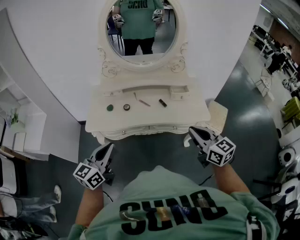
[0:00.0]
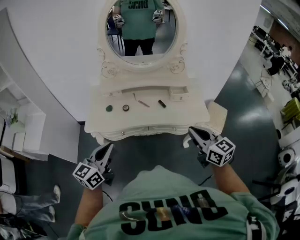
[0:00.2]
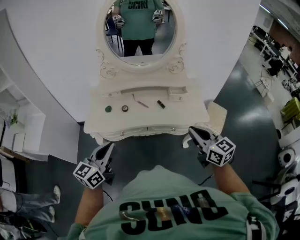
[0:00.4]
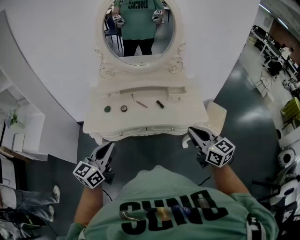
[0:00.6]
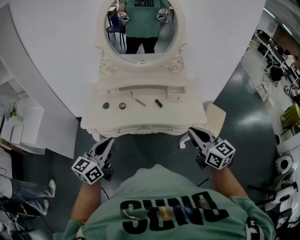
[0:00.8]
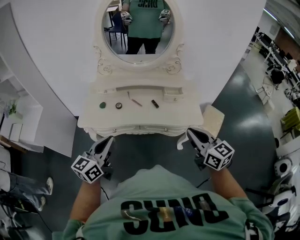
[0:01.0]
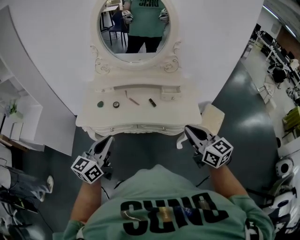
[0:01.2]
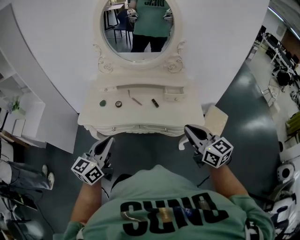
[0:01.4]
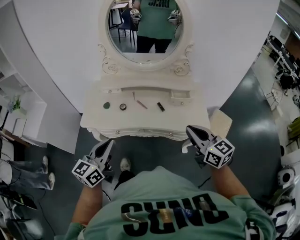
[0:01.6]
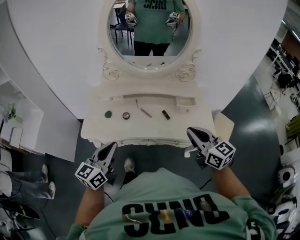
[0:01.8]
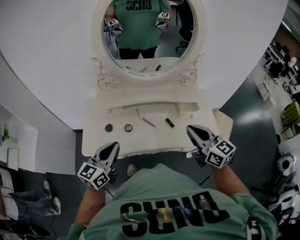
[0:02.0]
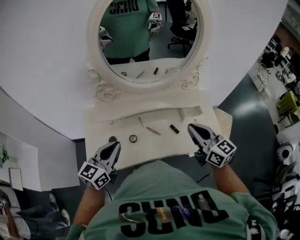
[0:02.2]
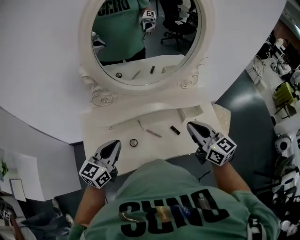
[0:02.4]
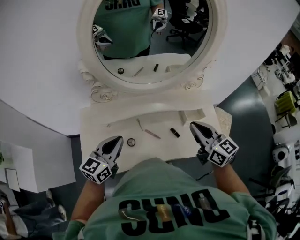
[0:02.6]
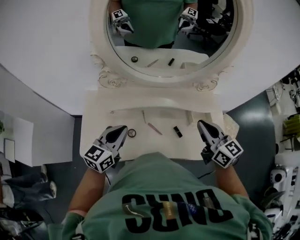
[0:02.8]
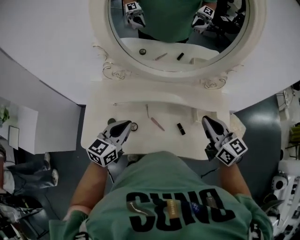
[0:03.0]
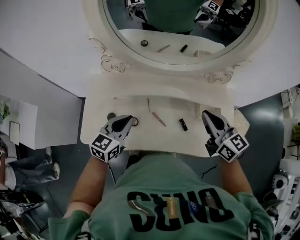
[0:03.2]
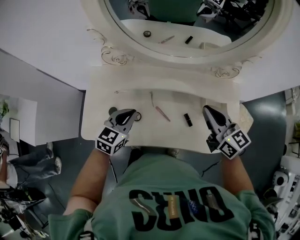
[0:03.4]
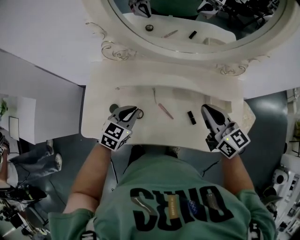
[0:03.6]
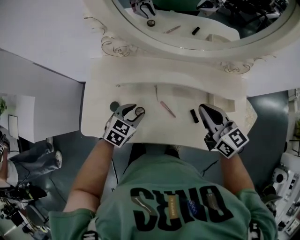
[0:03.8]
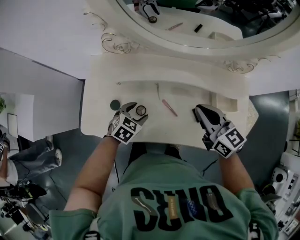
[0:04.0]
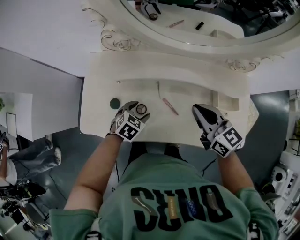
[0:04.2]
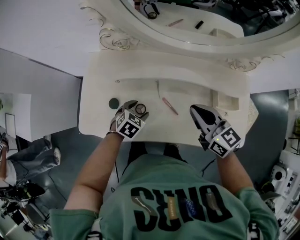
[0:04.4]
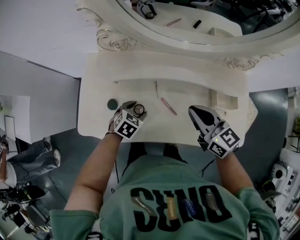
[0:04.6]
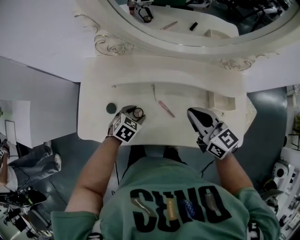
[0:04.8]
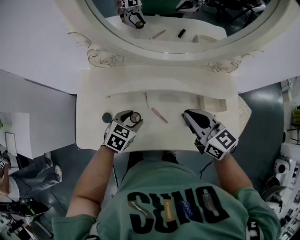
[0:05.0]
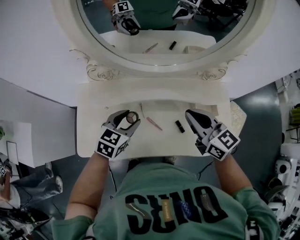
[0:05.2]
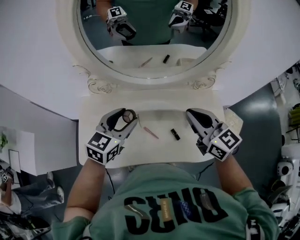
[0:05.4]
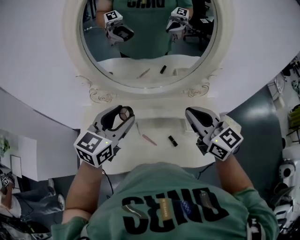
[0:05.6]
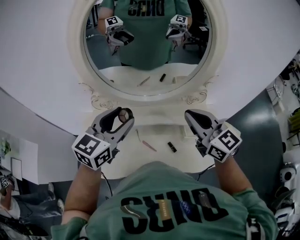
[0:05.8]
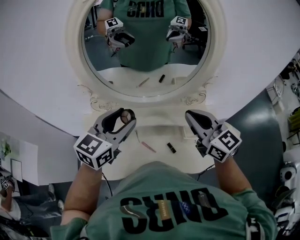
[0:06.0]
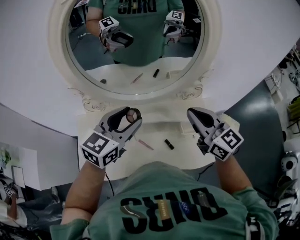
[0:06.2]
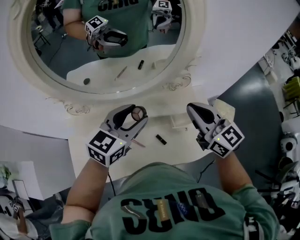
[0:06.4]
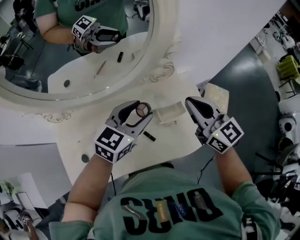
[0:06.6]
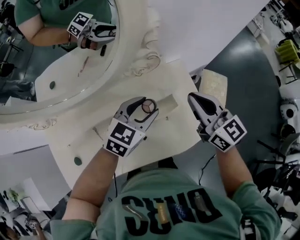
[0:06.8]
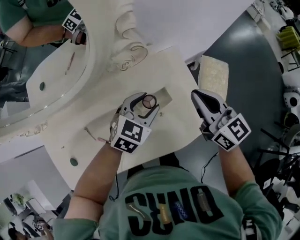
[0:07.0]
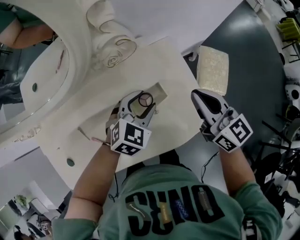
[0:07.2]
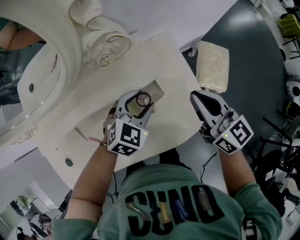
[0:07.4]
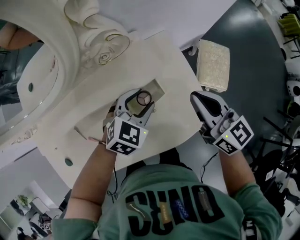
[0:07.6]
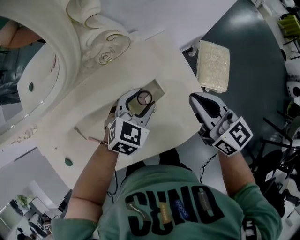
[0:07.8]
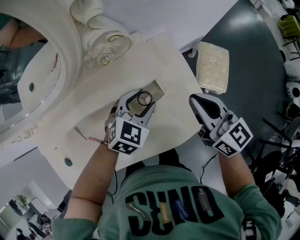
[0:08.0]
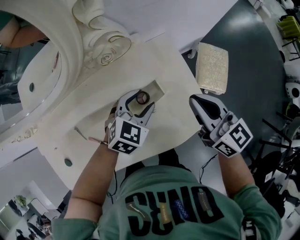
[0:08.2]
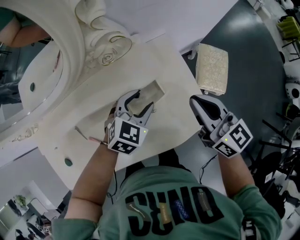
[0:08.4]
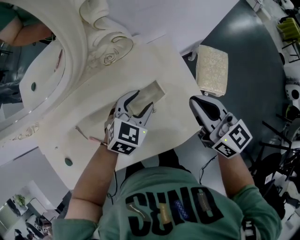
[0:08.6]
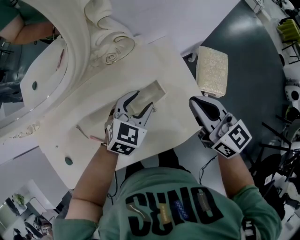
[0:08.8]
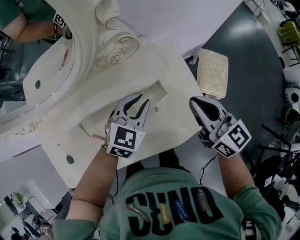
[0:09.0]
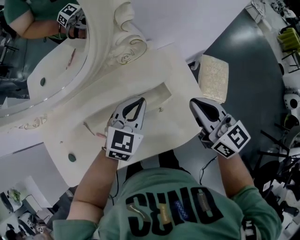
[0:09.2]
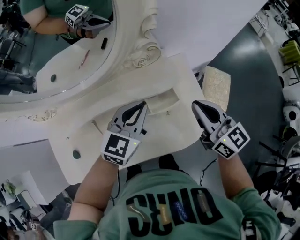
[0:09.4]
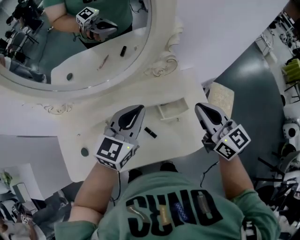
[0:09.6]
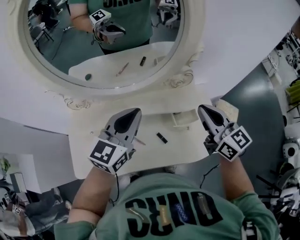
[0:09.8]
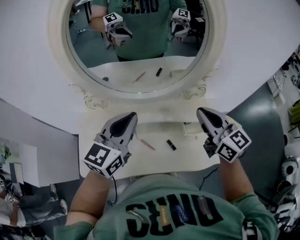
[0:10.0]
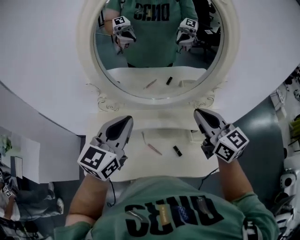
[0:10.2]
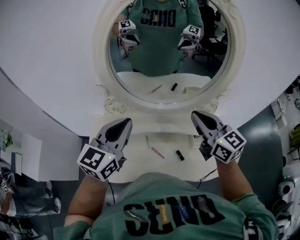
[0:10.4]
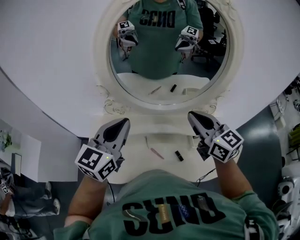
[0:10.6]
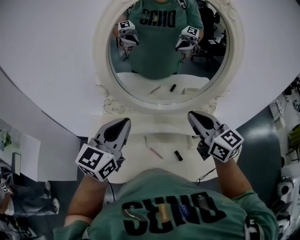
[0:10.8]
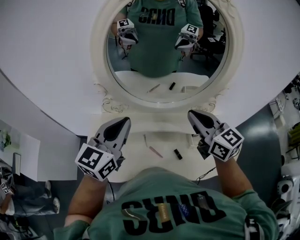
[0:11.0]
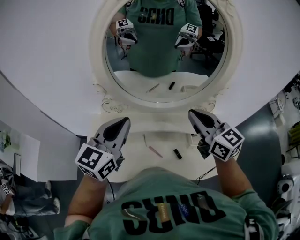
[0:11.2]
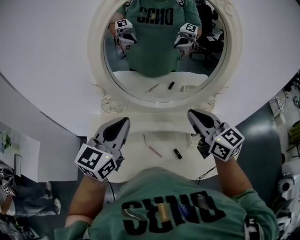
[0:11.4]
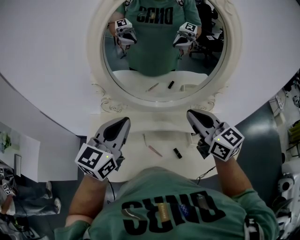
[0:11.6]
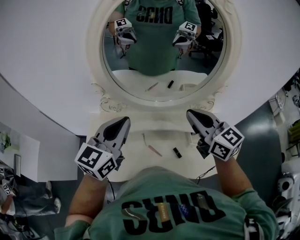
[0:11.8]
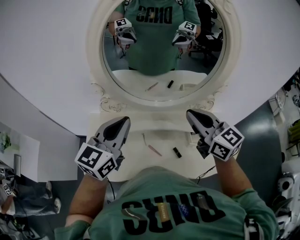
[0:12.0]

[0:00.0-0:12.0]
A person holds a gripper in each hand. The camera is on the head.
0:00.0 to 0:01.6: The right gripper heads forward and to the right, covering some 10 cm. Meanwhile the left gripper heads to the right, covering approximately 10 cm.
0:01.6 to 0:03.0: Both grippers move forward, some 30 cm.
0:03.0 to 0:04.4: The right gripper moves downward and to the left, some 15 cm. The left gripper moves downward, roughly 25 cm, tilts its fingers approximately 40 degrees downward, and opens its fingers.
0:04.4 to 0:06.0: The right gripper is displaced upward and to the right by about 25 cm, and rotates about 20 degrees. The left gripper travels upward by roughly 40 cm, and tilts its fingers about 50 degrees upward.
0:06.0 to 0:07.6: The grippers both shift to the right and downward by roughly 40 cm. The left gripper angles its fingers downward, by about 30 degrees. Meanwhile the right gripper turns by roughly 30 degrees.
0:07.6 to 0:09.0: The left gripper shifts by approximately 5 cm, and closes its fingers.
0:09.0 to 0:10.4: Both grippers move to the left and upward, some 50 cm. The right gripper rotates about 30 degrees. The left gripper swivels some 40 degrees.
0:10.4 to 0:12.0: Both grippers stay put.

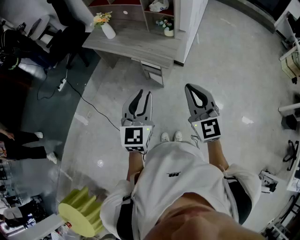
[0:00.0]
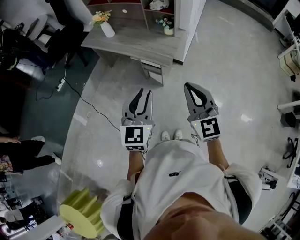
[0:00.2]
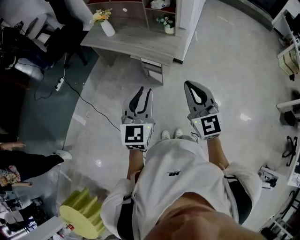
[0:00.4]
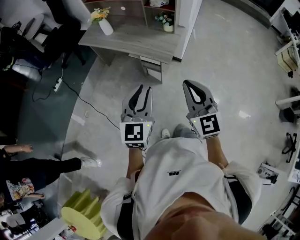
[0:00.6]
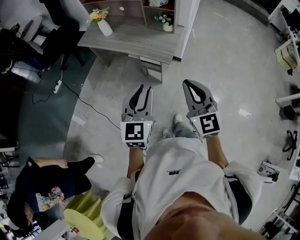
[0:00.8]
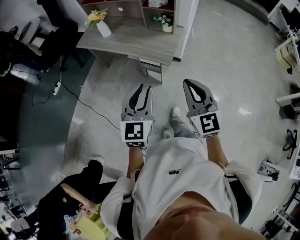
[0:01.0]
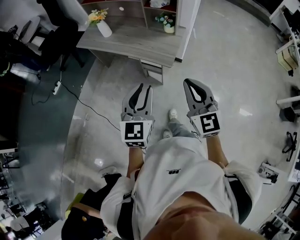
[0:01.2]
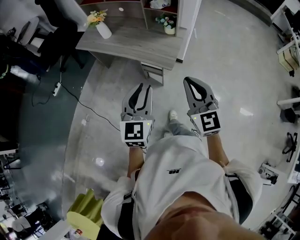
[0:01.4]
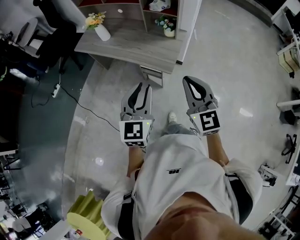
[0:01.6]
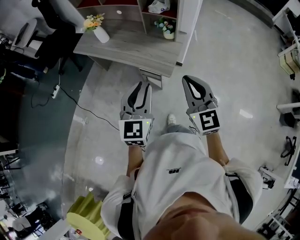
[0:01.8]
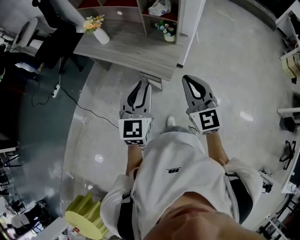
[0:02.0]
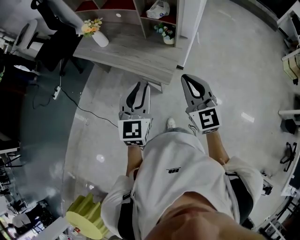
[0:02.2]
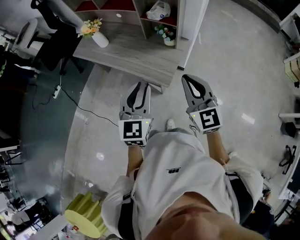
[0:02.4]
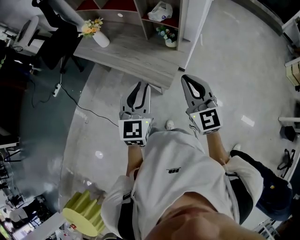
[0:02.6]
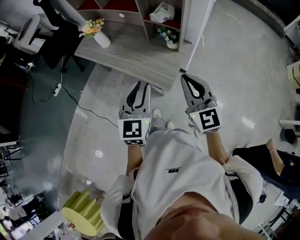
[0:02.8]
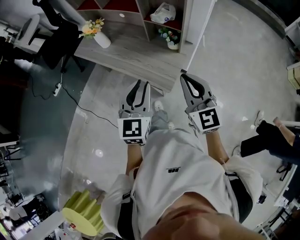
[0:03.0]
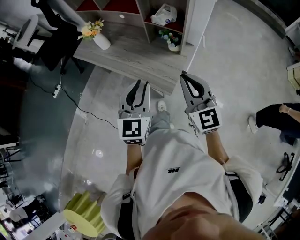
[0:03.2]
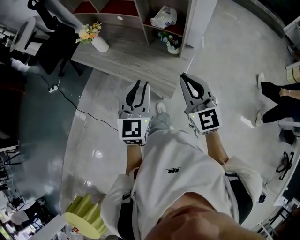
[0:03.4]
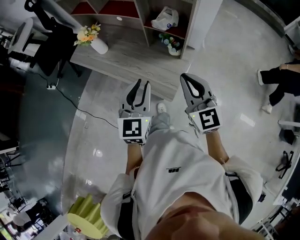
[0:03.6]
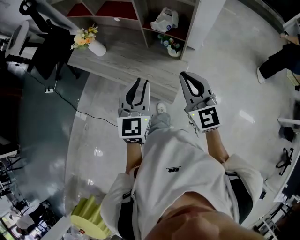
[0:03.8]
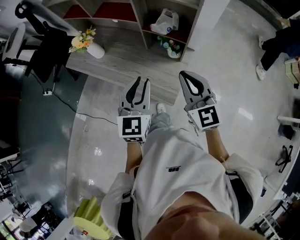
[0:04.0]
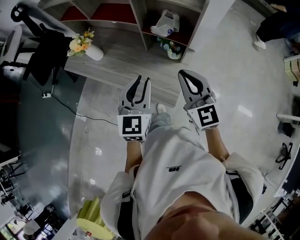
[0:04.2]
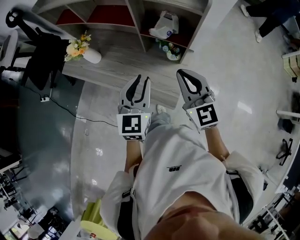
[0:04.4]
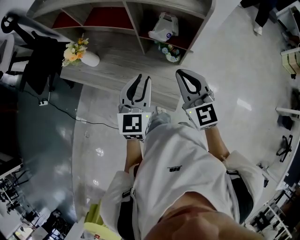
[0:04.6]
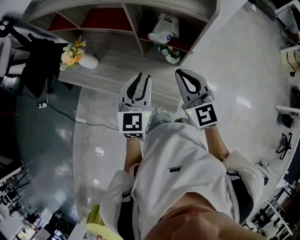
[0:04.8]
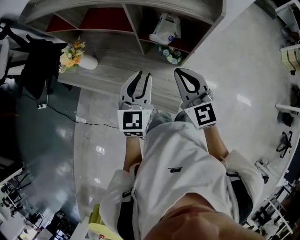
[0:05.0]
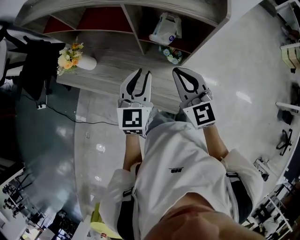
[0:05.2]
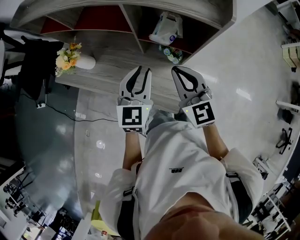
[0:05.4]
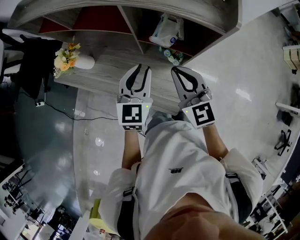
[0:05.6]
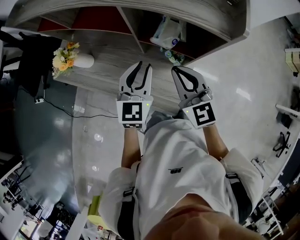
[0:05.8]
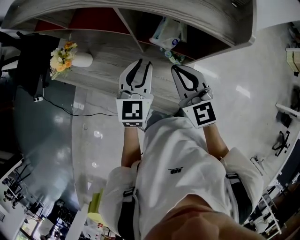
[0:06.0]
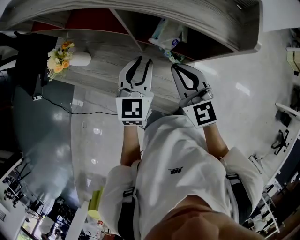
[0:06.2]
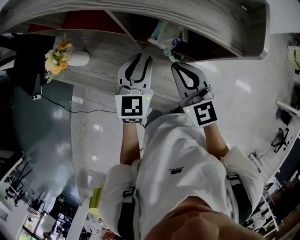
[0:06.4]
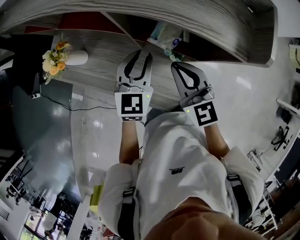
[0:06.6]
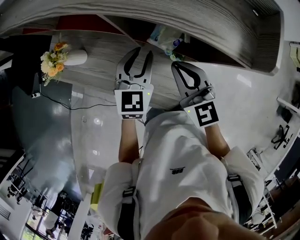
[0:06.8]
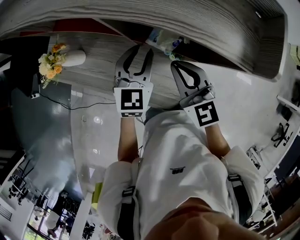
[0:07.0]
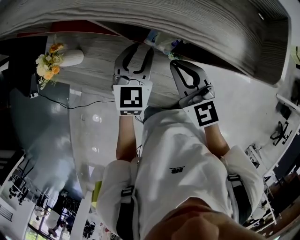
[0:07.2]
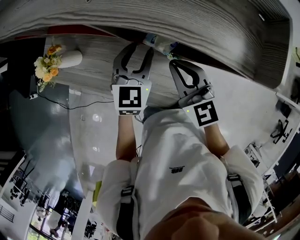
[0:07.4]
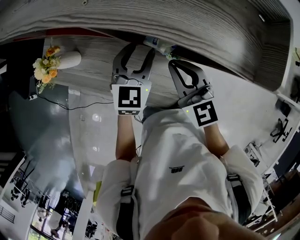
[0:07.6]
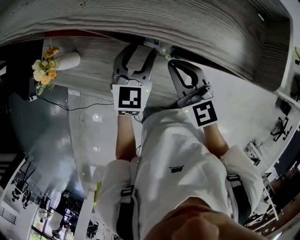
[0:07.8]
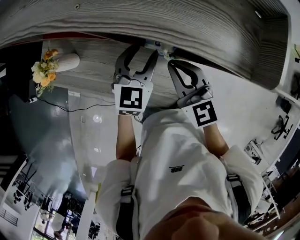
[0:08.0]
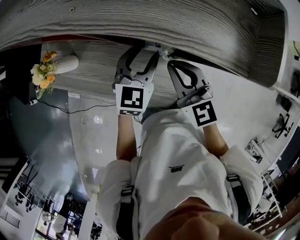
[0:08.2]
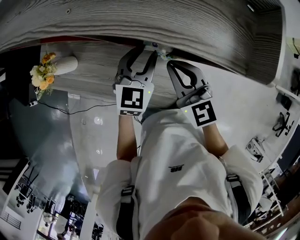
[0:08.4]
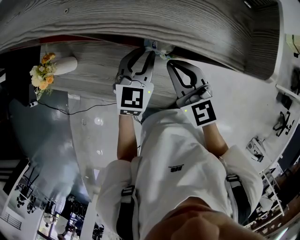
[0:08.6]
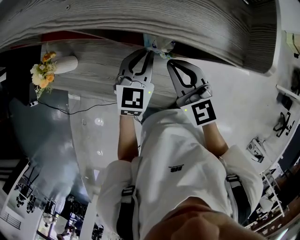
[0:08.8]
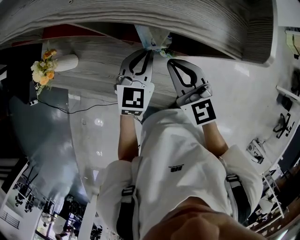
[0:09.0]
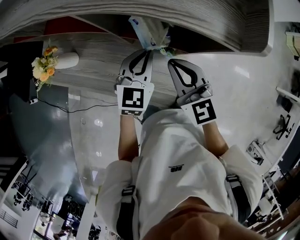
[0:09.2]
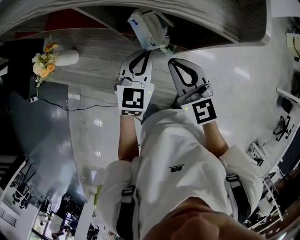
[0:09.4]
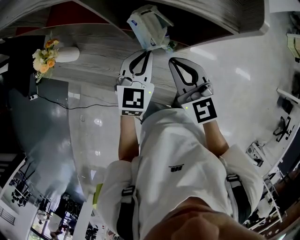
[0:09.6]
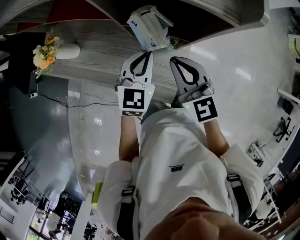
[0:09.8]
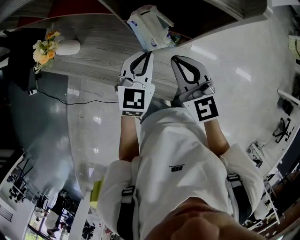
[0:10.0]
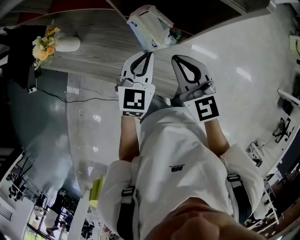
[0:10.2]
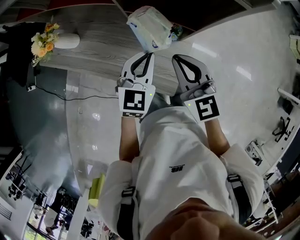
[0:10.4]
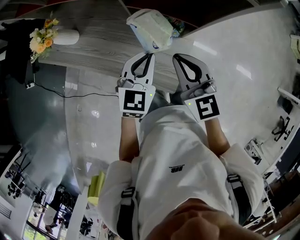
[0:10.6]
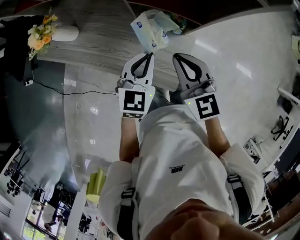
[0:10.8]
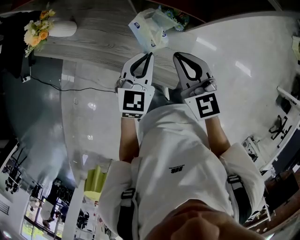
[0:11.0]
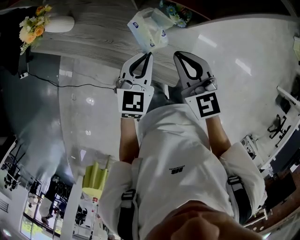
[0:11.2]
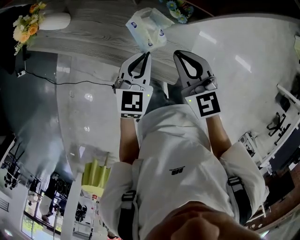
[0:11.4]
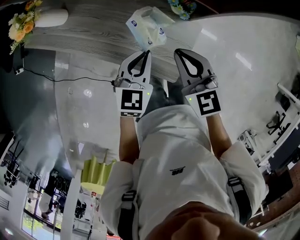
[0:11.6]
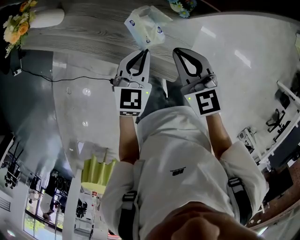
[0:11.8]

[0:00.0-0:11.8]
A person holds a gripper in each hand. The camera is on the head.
0:00.0 to 0:01.4: Both grippers travel together forward, roughly 10 cm.
0:01.4 to 0:03.0: Both grippers travel together forward, roughly 20 cm.
0:03.0 to 0:04.4: Both grippers travel together forward, approximately 20 cm.
0:04.4 to 0:06.0: The two grippers go about 15 cm forward and downward.
0:06.0 to 0:07.4: The right gripper changes place by some 5 cm; the left gripper travels forward by about 5 cm.
0:07.4 to 0:08.8: The left gripper ends up some 5 cm from where it was, and closes up.
0:08.8 to 0:10.4: The two grippers go some 10 cm backward.
0:10.4 to 0:11.8: The right gripper goes approximately 10 cm downward; the left gripper goes approximately 15 cm downward and backward.
